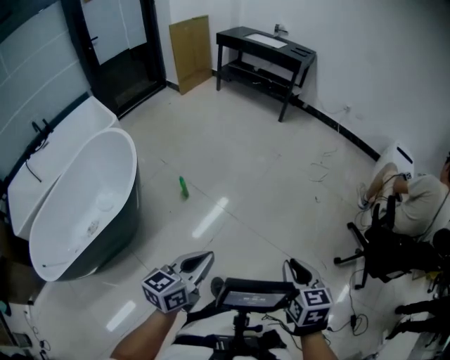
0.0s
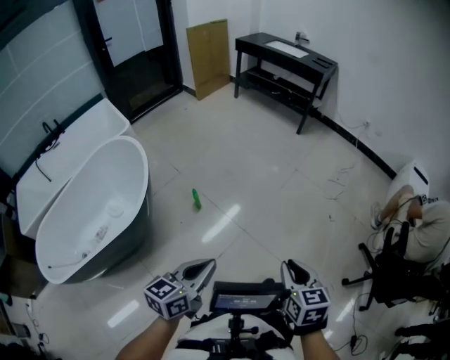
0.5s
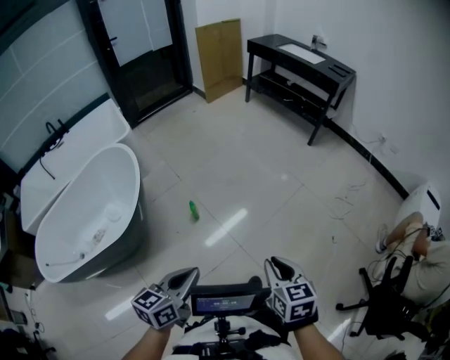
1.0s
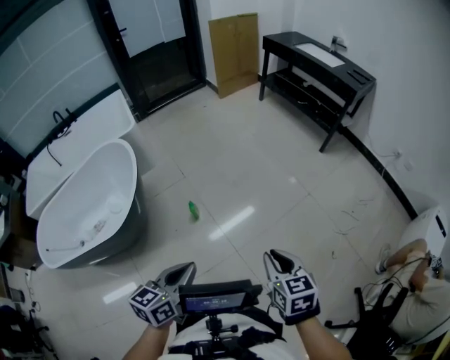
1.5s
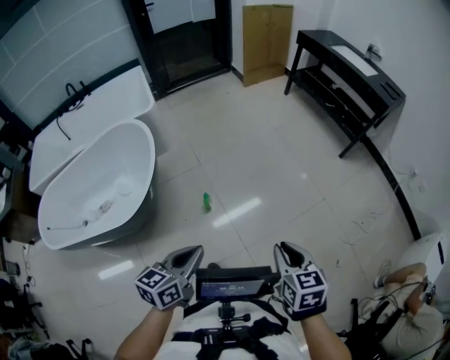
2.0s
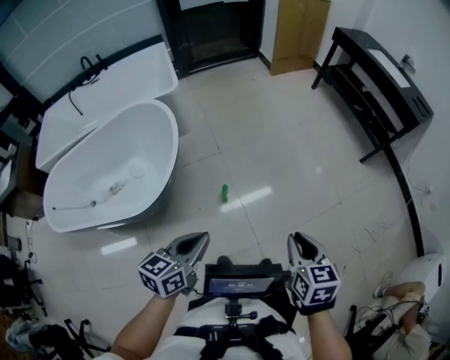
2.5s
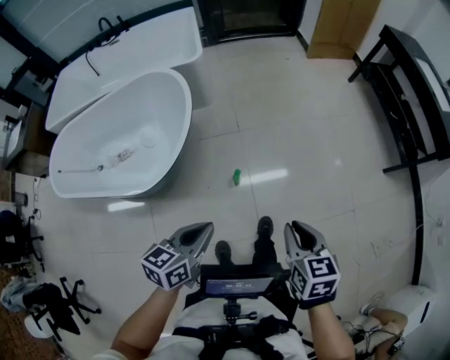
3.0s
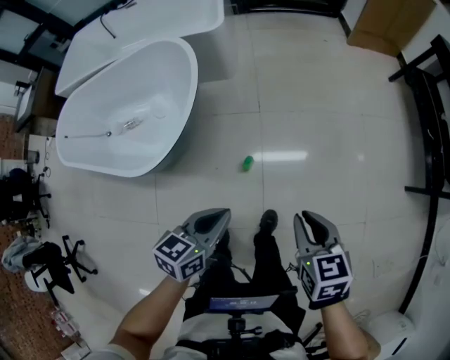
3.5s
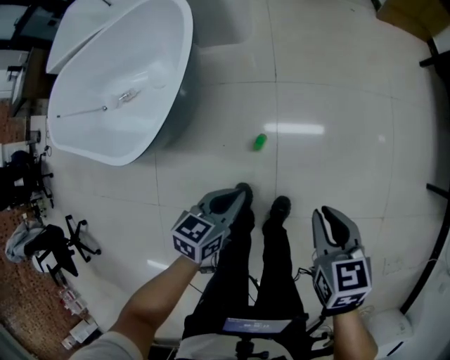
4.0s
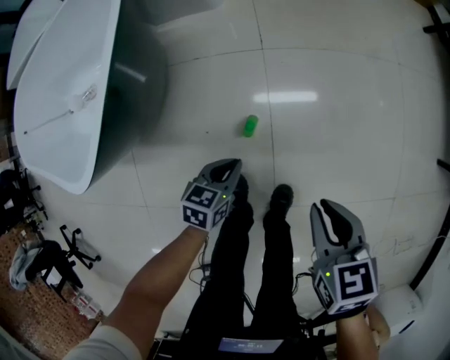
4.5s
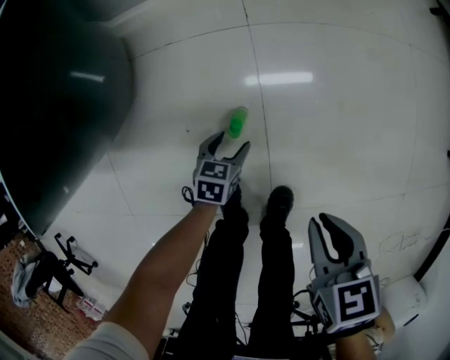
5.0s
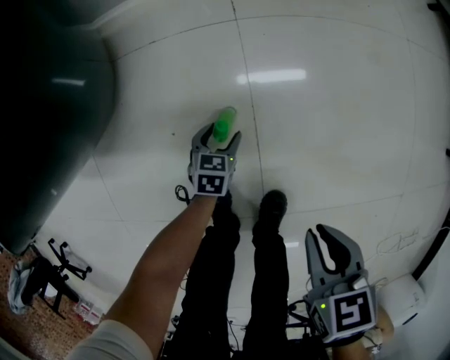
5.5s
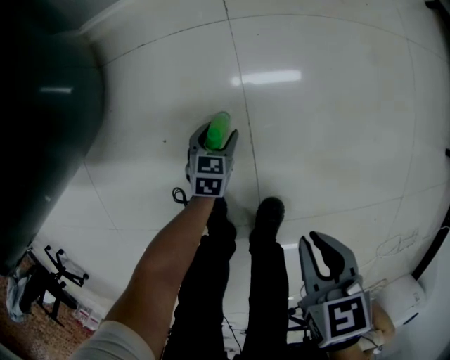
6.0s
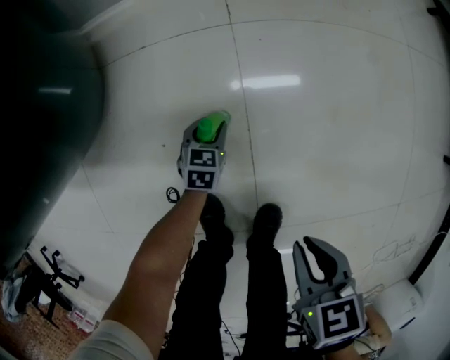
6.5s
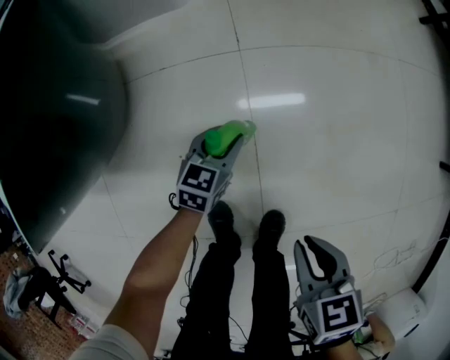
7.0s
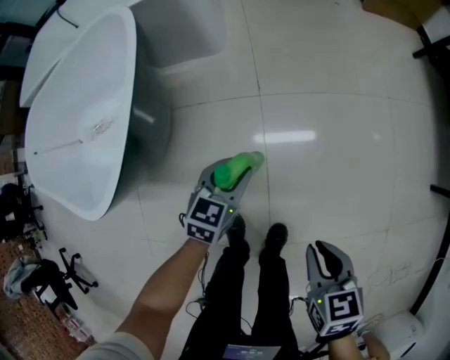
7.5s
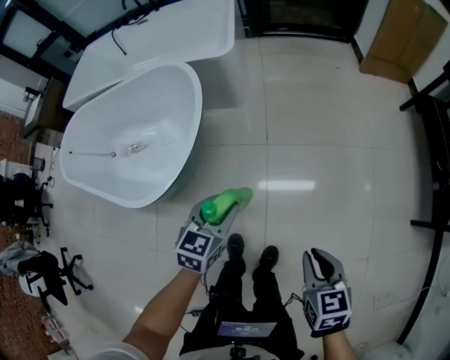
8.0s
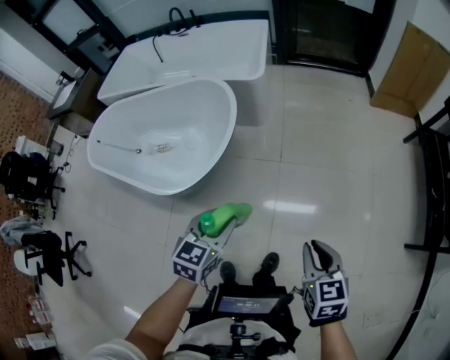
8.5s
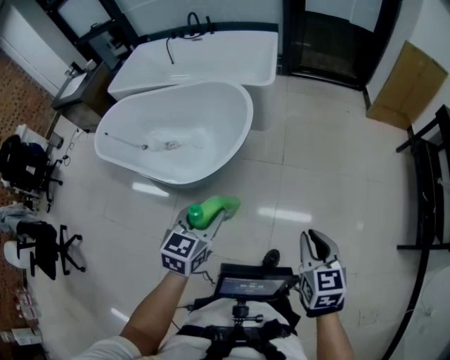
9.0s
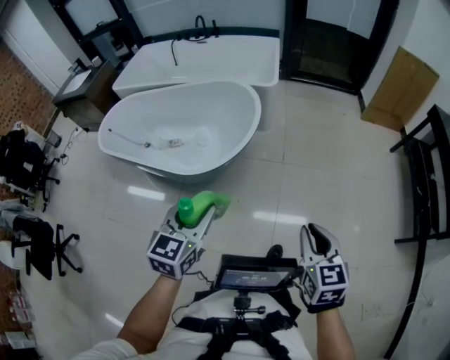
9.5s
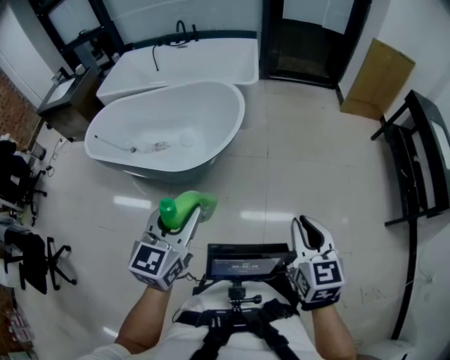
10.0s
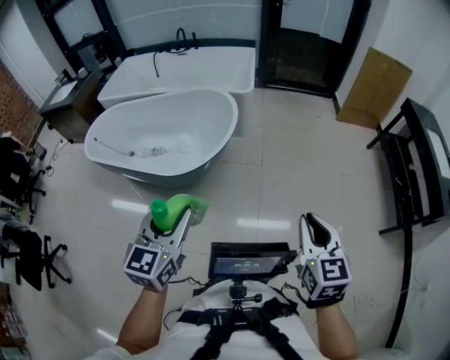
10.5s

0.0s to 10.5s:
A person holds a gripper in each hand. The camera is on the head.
0.0s to 2.0s: The right gripper changes place by about 40 cm, and turns by roughly 30 degrees. The left gripper ends up roughly 30 cm from where it was, and changes its angle by about 30 degrees.
2.0s to 4.0s: The right gripper changes place by roughly 40 cm, and changes its angle by some 40 degrees; the left gripper is displaced downward by about 30 cm, and turns by roughly 30 degrees.
4.0s to 6.5s: The right gripper goes roughly 30 cm downward; the left gripper moves downward, about 50 cm, rotates about 20 degrees, and opens.
6.5s to 8.5s: The left gripper heads upward, covering roughly 70 cm, and rotates roughly 20 degrees, while the right gripper travels upward by approximately 40 cm, and turns by some 30 degrees.
8.5s to 10.5s: The left gripper goes about 30 cm backward, upward and to the left, and swivels about 20 degrees; the right gripper heads upward, backward and to the left, covering some 25 cm.

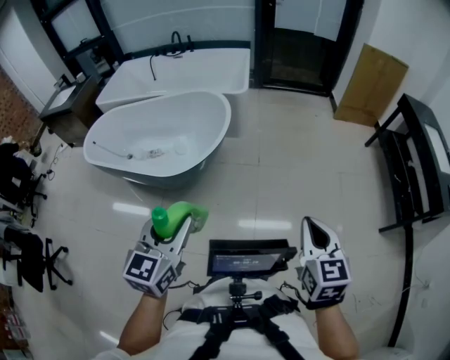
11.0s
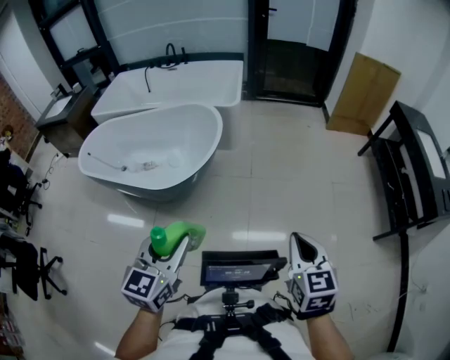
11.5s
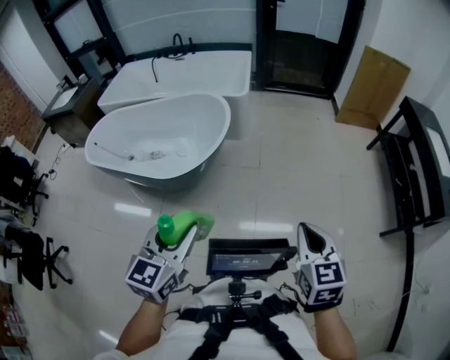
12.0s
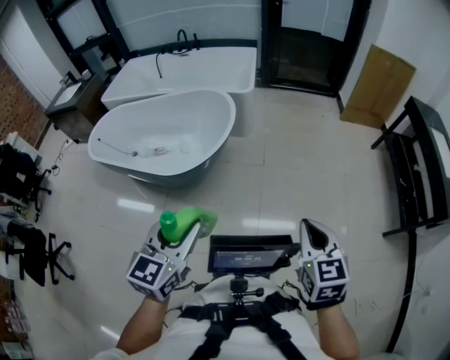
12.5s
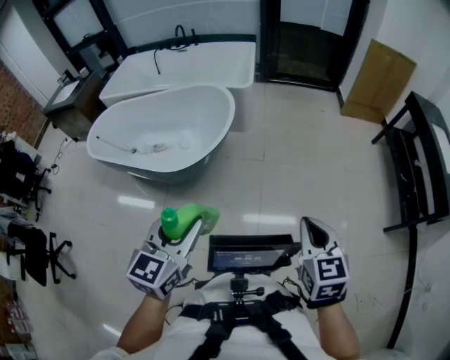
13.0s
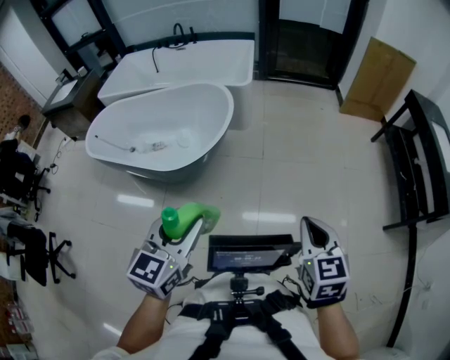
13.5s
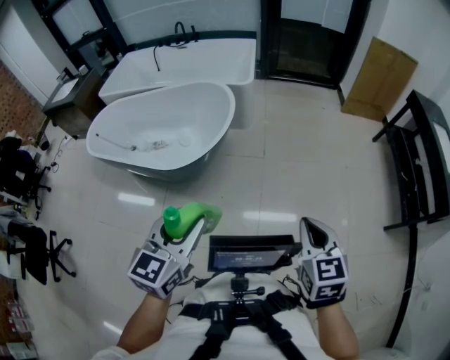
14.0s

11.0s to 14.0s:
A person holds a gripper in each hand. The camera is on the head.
11.0s to 12.5s: There are only small adjustments of the grippers.
12.5s to 14.0s: Both grippers stay about where they are.

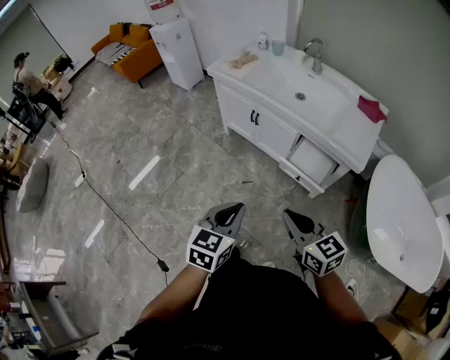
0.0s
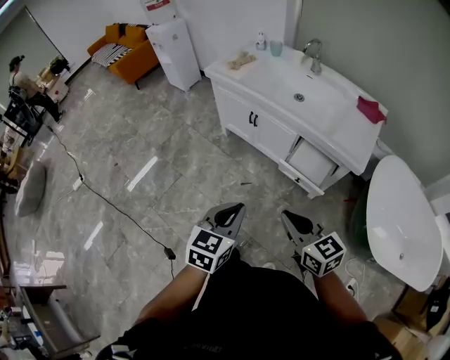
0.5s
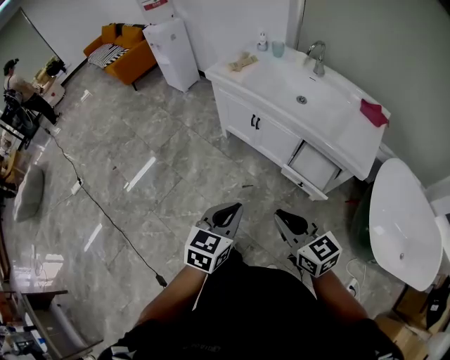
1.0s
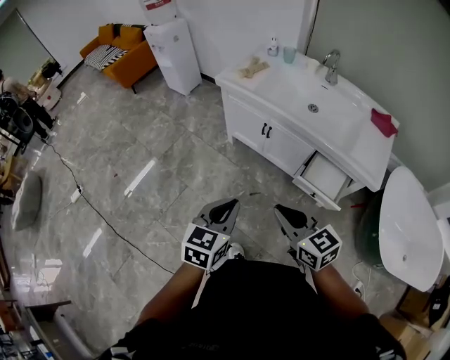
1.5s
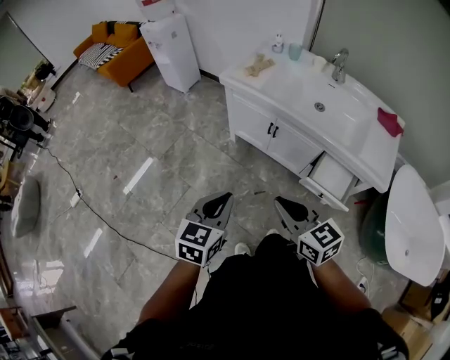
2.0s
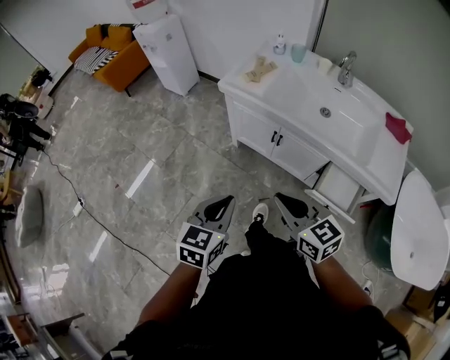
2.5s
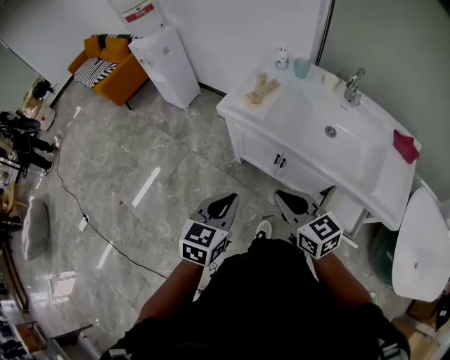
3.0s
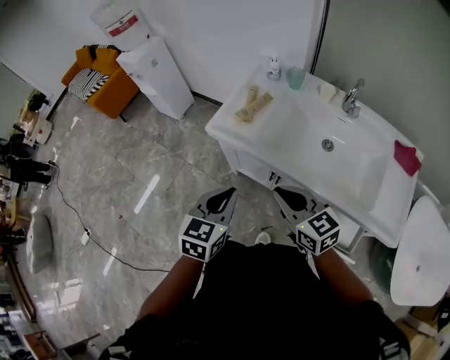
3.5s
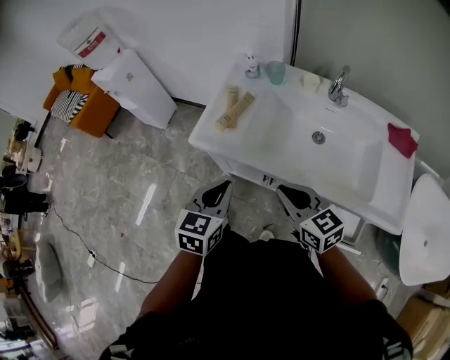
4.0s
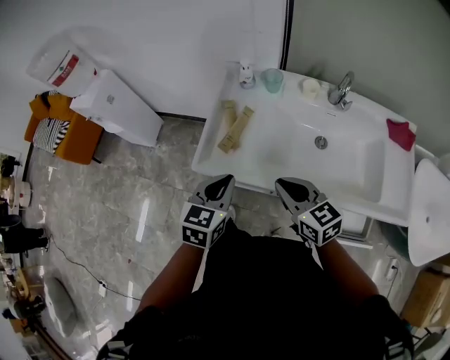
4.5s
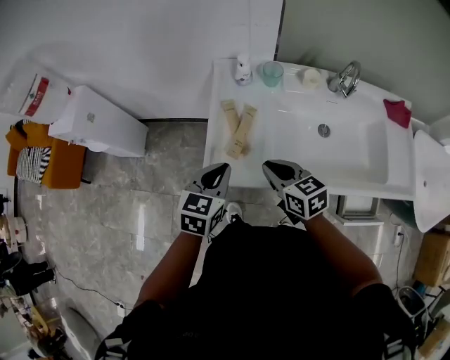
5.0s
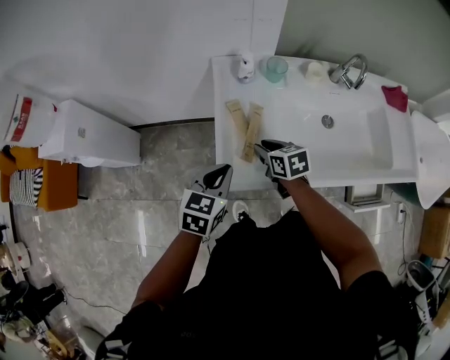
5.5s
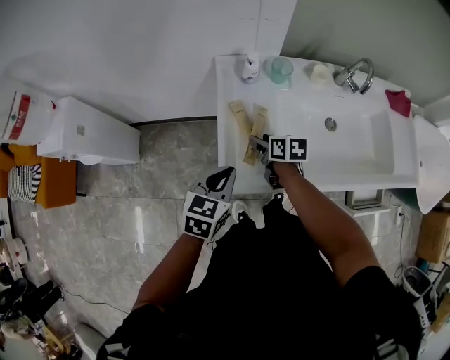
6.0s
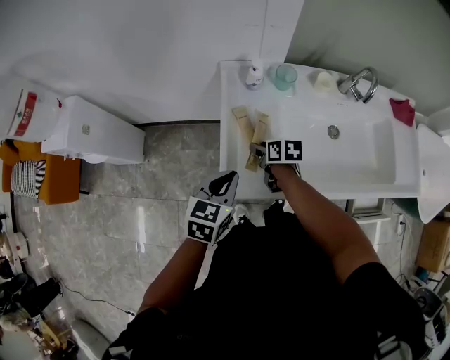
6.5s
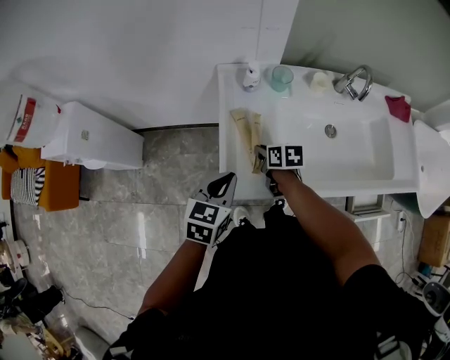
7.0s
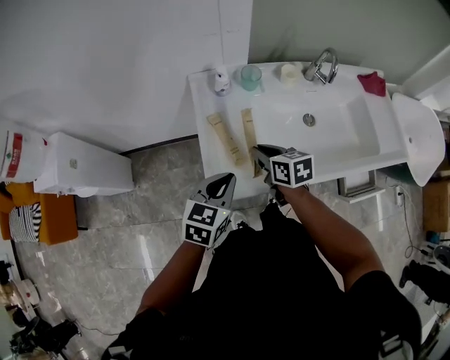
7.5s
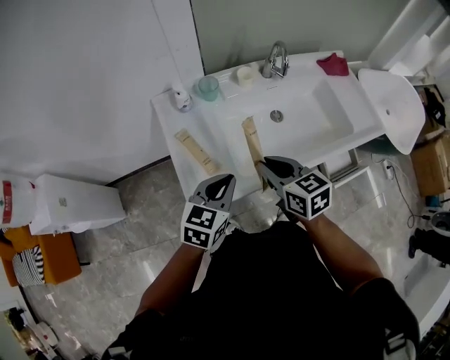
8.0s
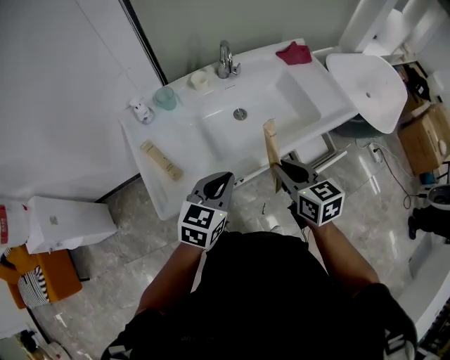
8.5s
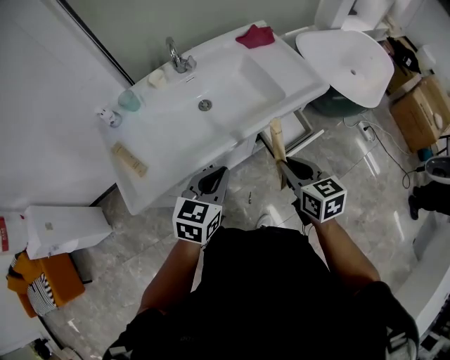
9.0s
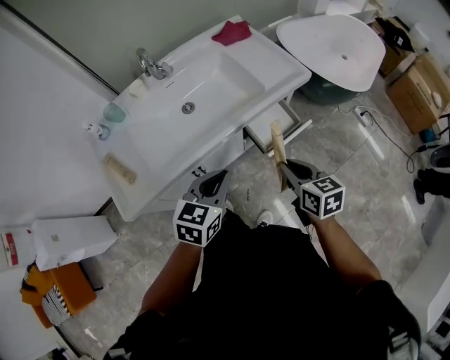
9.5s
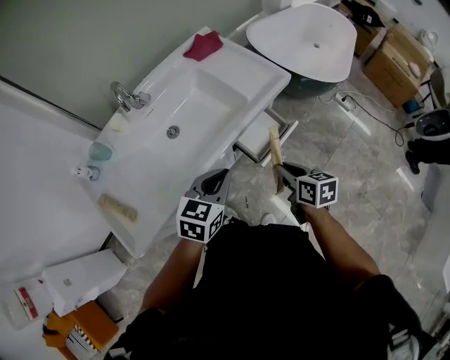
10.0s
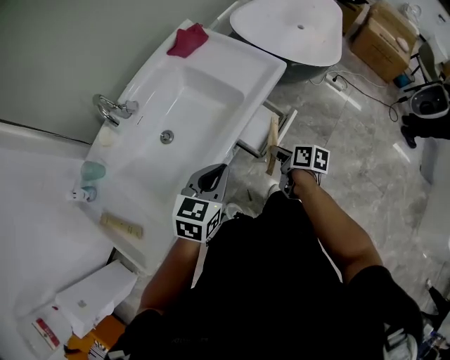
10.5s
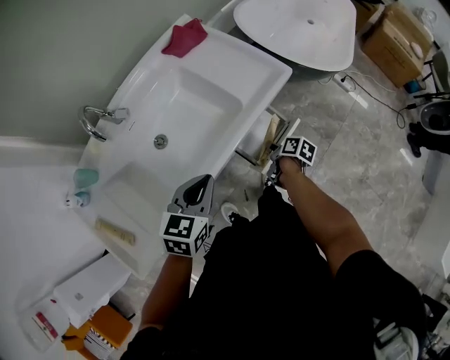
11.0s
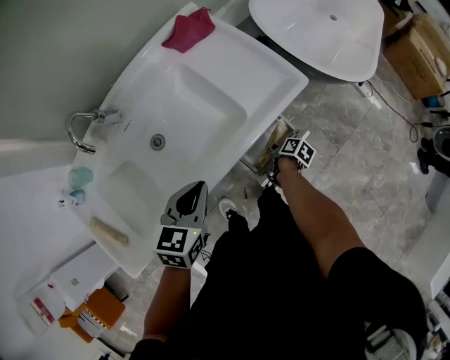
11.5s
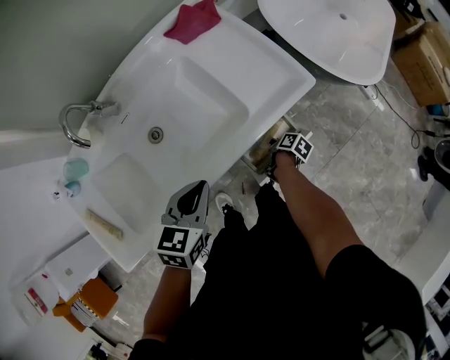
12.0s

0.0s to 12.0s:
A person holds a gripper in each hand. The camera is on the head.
0.0s to 2.0s: Both grippers move forward and to the left, about 25 cm.
2.0s to 4.0s: The two grippers go roughly 40 cm forward.
4.0s to 6.0s: The left gripper ends up approximately 30 cm from where it was, and turns by about 30 degrees. The right gripper ends up some 40 cm from where it was, rolls clockwise, seen from behind, by some 40 degrees, and opens.
6.0s to 8.0s: The left gripper moves to the right, some 10 cm, and swivels some 20 degrees, while the right gripper goes some 25 cm upward, to the right and backward, turns by some 30 degrees, and closes up.
8.0s to 10.0s: The right gripper shifts by roughly 50 cm, and turns by roughly 40 degrees, while the left gripper ends up approximately 35 cm from where it was, and rotates about 20 degrees.
10.0s to 12.0s: The right gripper moves downward and forward, approximately 40 cm, and rolls clockwise, seen from behind, by approximately 50 degrees, while the left gripper goes about 15 cm forward and downward.

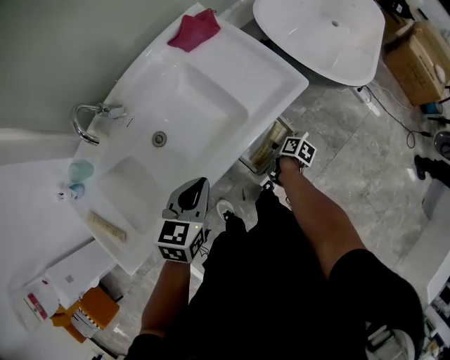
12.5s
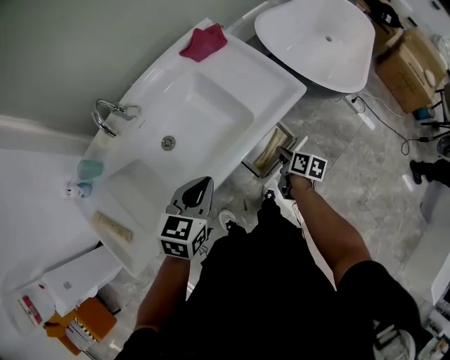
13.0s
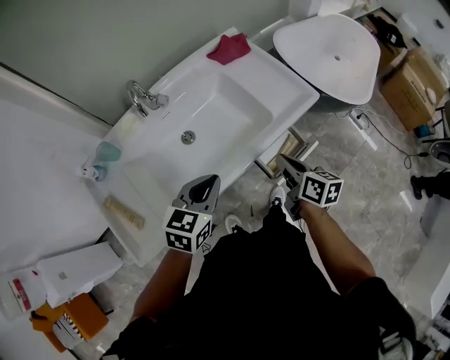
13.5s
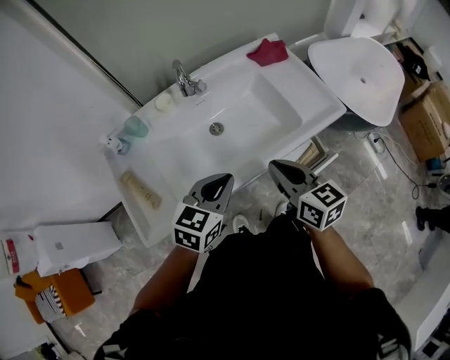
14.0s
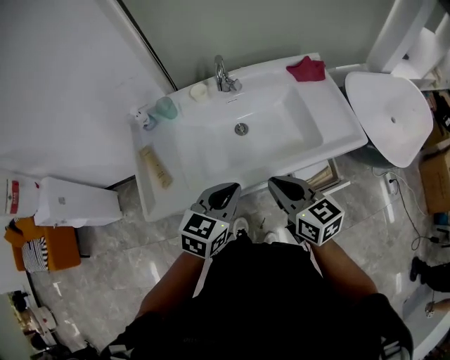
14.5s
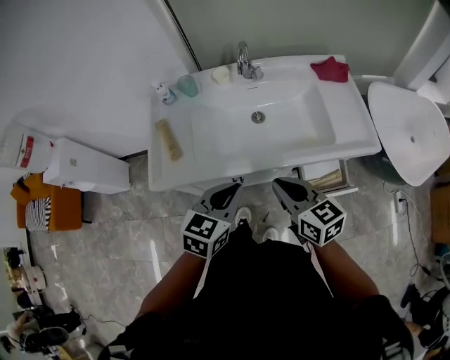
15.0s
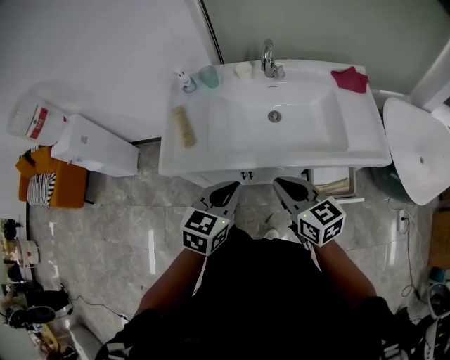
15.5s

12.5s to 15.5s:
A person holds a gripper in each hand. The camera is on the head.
12.5s to 14.0s: The left gripper is displaced to the left, backward and upward by roughly 20 cm; the right gripper is displaced upward and to the left by some 50 cm, and rolls counterclockwise, seen from behind, by approximately 60 degrees.
14.0s to 15.5s: The right gripper changes place by some 10 cm, and swivels roughly 30 degrees; the left gripper shifts by roughly 10 cm, and swivels roughly 30 degrees.
